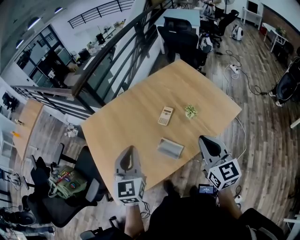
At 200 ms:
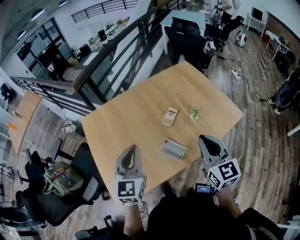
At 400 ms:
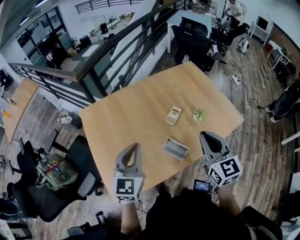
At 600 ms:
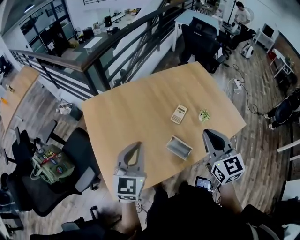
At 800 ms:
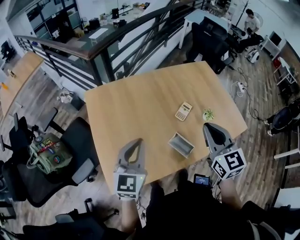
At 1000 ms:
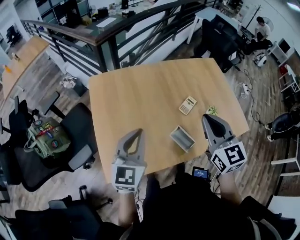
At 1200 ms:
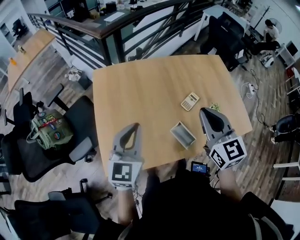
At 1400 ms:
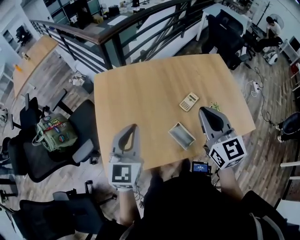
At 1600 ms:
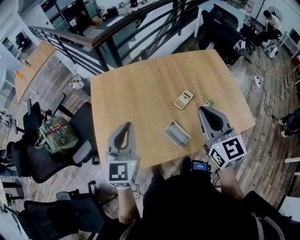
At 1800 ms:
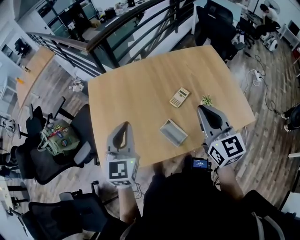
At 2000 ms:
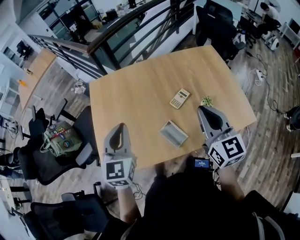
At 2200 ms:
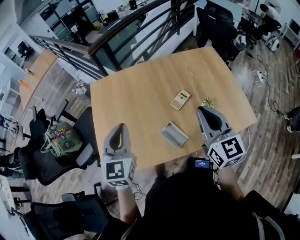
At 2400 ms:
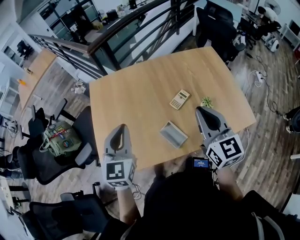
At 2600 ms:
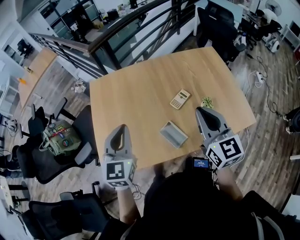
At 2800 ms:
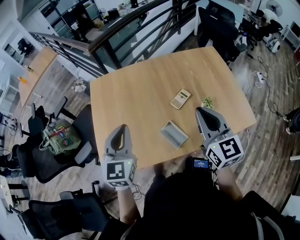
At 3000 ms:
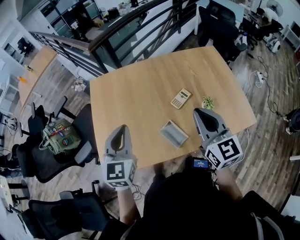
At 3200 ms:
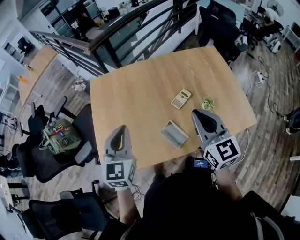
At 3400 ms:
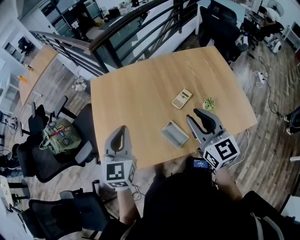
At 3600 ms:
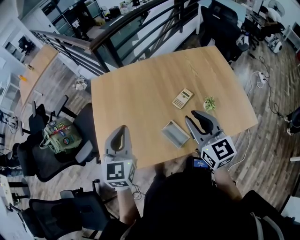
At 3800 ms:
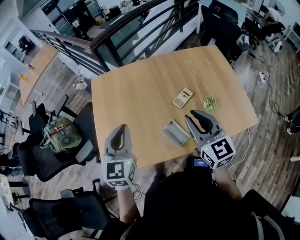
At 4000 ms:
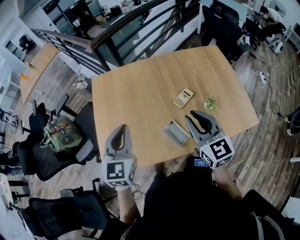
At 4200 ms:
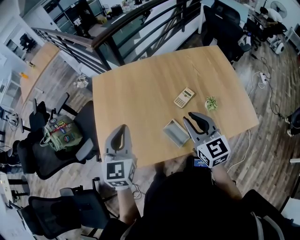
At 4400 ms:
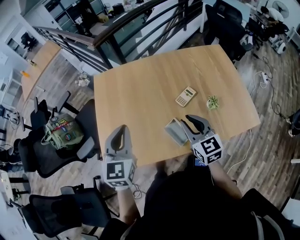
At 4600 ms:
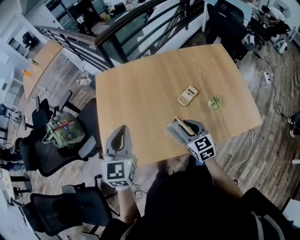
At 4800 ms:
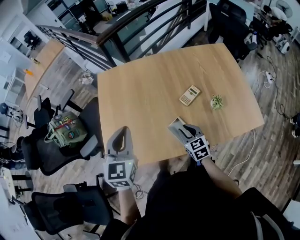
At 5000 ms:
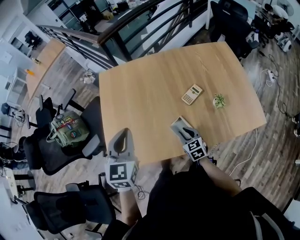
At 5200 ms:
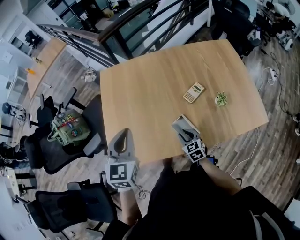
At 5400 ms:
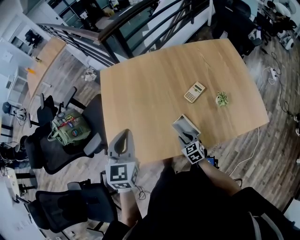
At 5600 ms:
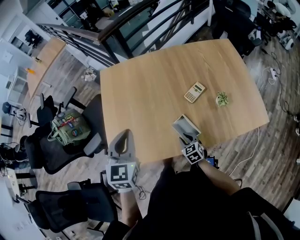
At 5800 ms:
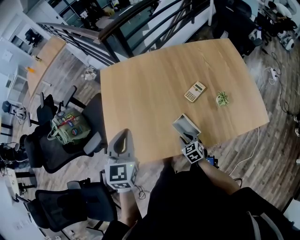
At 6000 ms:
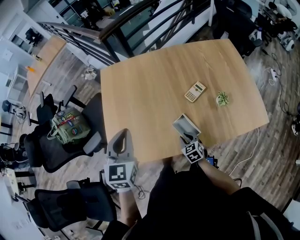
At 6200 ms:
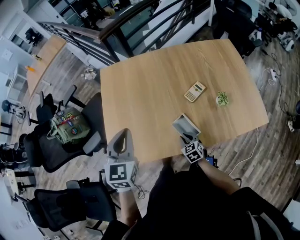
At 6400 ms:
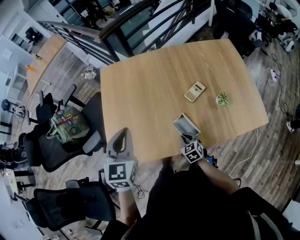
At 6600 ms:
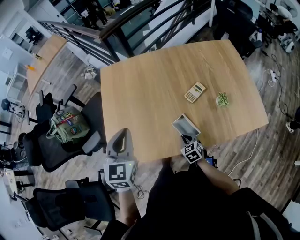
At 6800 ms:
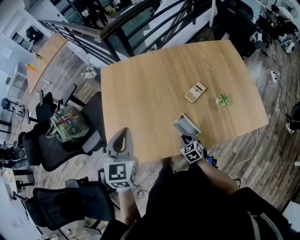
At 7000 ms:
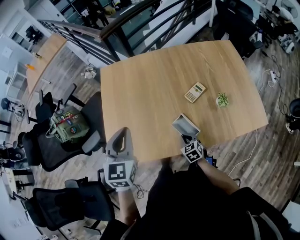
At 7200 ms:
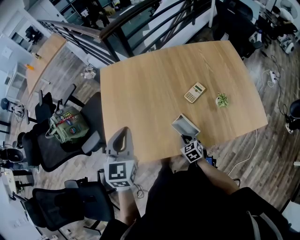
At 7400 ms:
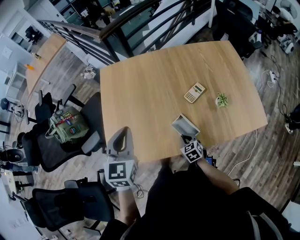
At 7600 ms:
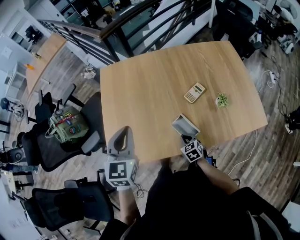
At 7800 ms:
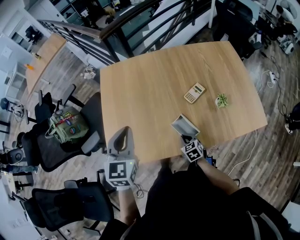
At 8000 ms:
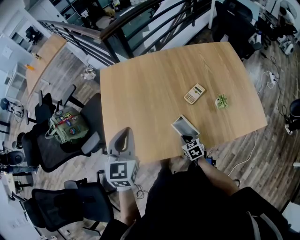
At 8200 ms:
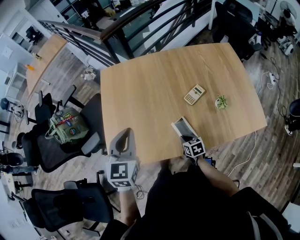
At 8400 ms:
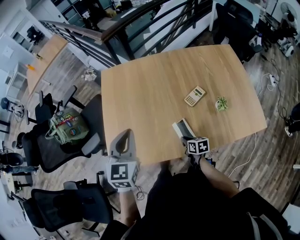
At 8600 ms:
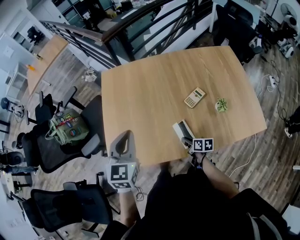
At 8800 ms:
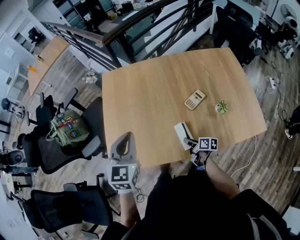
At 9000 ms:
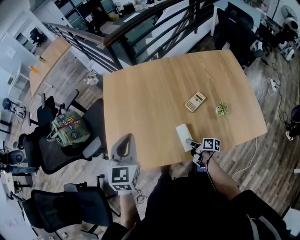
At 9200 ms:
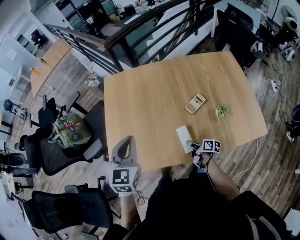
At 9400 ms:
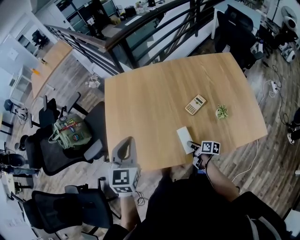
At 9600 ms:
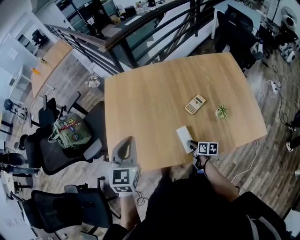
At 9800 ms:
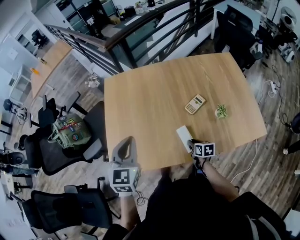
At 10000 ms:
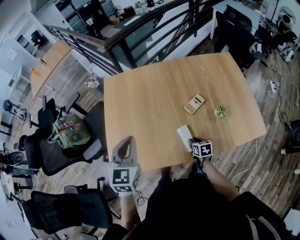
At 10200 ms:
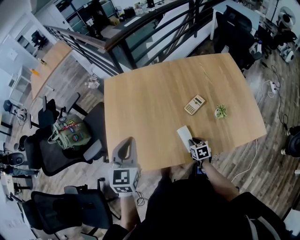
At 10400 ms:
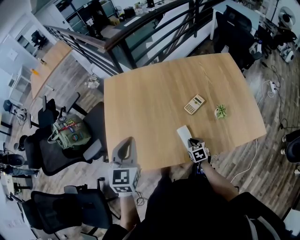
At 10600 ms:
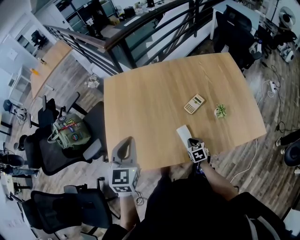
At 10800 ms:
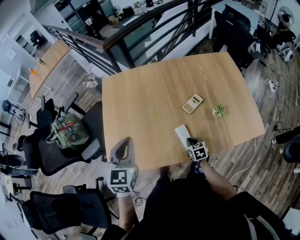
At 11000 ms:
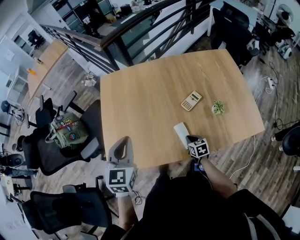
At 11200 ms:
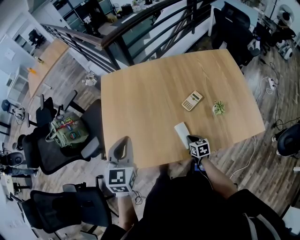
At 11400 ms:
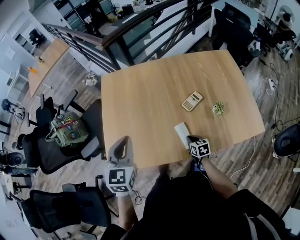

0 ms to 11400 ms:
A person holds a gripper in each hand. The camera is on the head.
0 ms to 1400 ms: The left gripper heads to the left, covering about 10 cm; the right gripper shifts roughly 20 cm to the left and forward, and changes its angle by roughly 20 degrees.
1400 ms to 2800 ms: The right gripper moves to the right, roughly 10 cm; the left gripper is displaced to the right by roughly 5 cm.
2800 ms to 4200 ms: The right gripper travels downward by some 5 cm.
4200 ms to 5600 ms: The right gripper moves downward, roughly 30 cm, and angles its fingers downward, by some 30 degrees.
5600 ms to 7200 ms: The right gripper closes.
7200 ms to 8600 ms: The right gripper rolls clockwise, seen from behind, by approximately 50 degrees.
8600 ms to 10000 ms: The right gripper is displaced to the right by approximately 5 cm, and turns by some 30 degrees.

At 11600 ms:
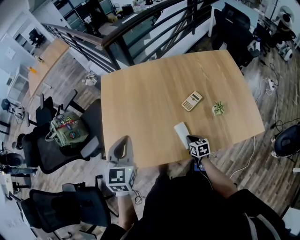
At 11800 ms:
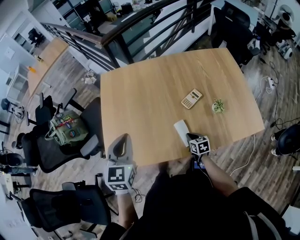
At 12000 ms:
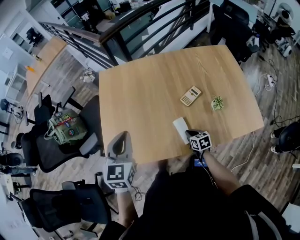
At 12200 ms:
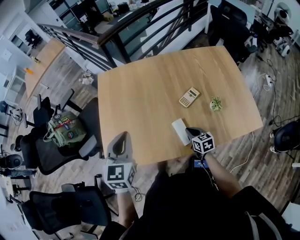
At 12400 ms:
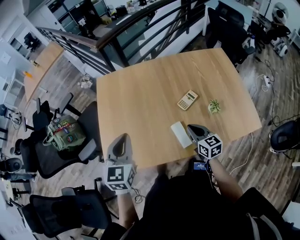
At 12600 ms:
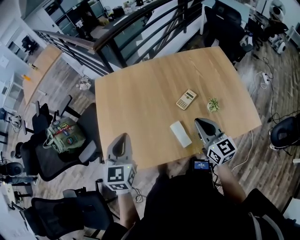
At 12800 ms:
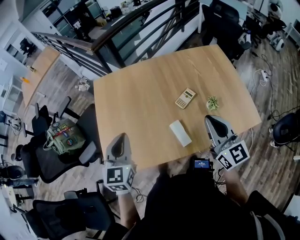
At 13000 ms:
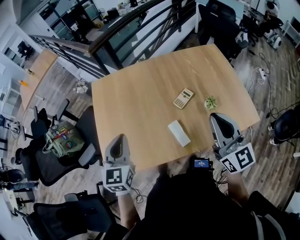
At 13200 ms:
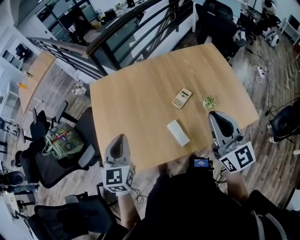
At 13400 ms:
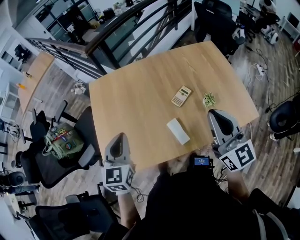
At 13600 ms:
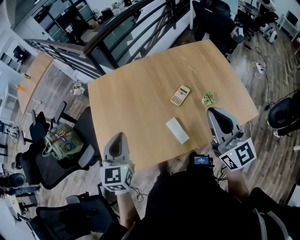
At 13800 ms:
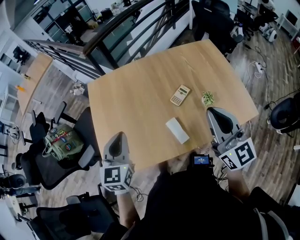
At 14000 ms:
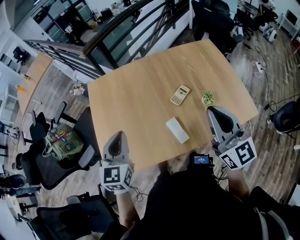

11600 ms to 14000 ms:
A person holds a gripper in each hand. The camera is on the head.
11600 ms to 12800 ms: The right gripper is displaced upward by about 35 cm, and tips its fingers upward by approximately 50 degrees.
12800 ms to 14000 ms: The right gripper is displaced upward by approximately 5 cm.

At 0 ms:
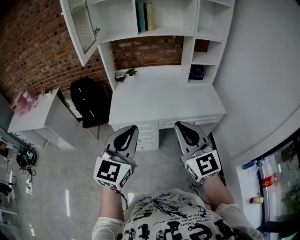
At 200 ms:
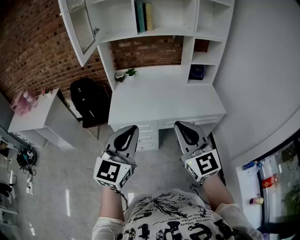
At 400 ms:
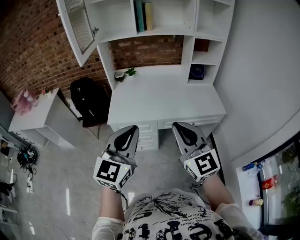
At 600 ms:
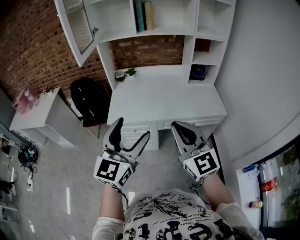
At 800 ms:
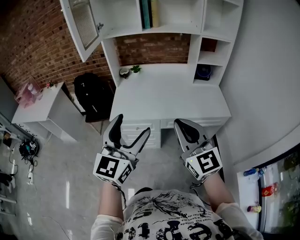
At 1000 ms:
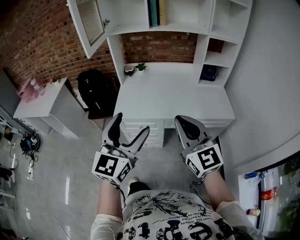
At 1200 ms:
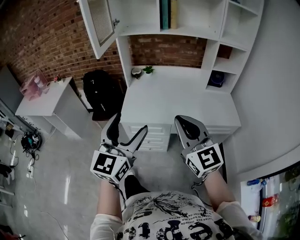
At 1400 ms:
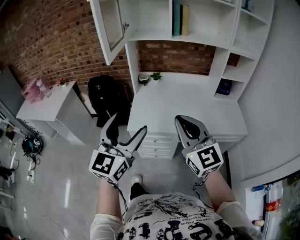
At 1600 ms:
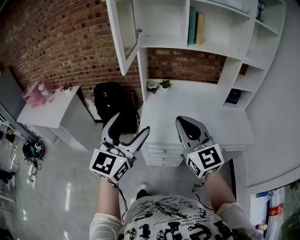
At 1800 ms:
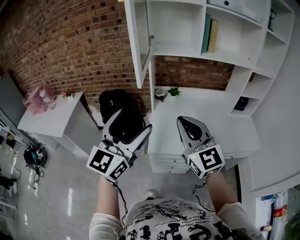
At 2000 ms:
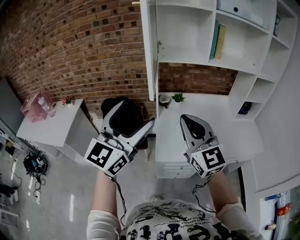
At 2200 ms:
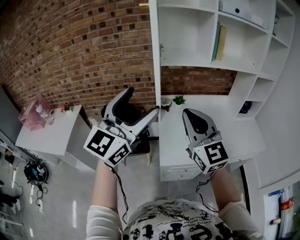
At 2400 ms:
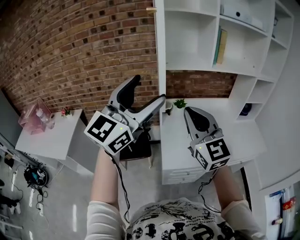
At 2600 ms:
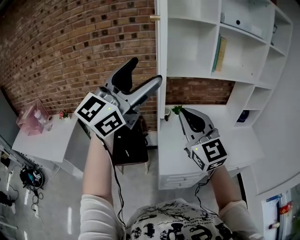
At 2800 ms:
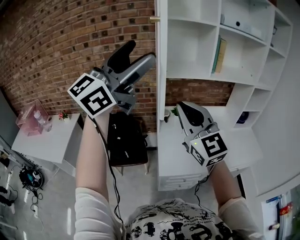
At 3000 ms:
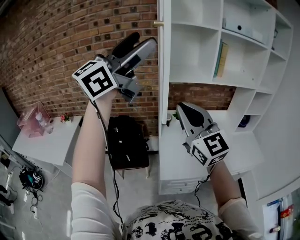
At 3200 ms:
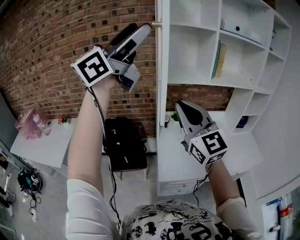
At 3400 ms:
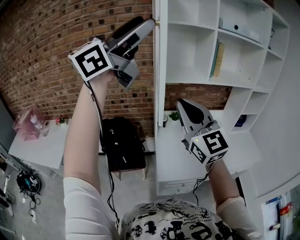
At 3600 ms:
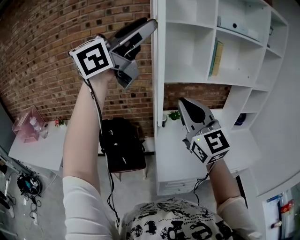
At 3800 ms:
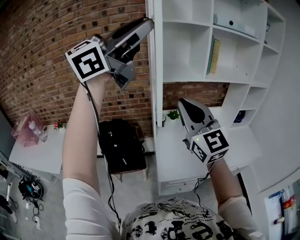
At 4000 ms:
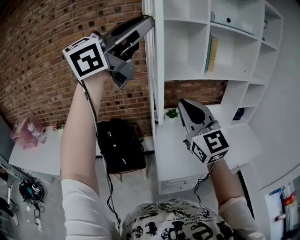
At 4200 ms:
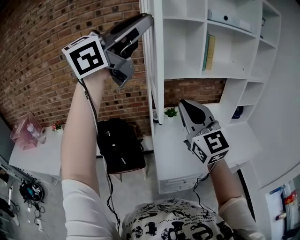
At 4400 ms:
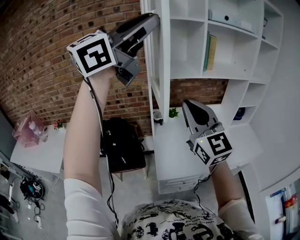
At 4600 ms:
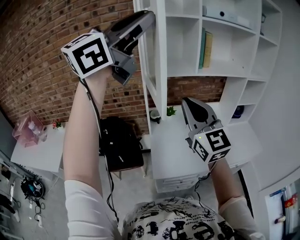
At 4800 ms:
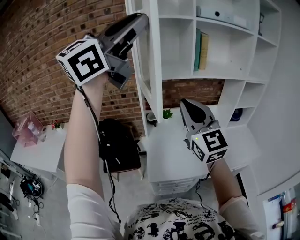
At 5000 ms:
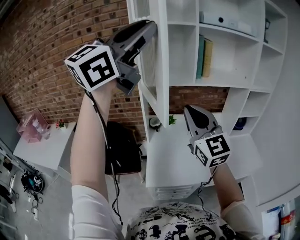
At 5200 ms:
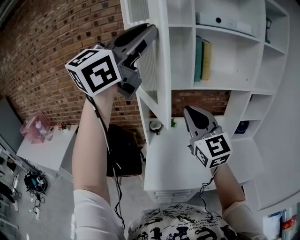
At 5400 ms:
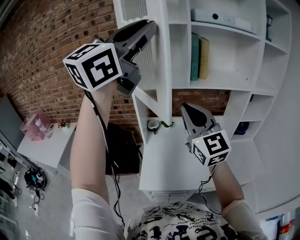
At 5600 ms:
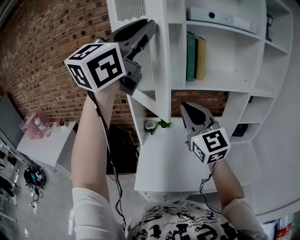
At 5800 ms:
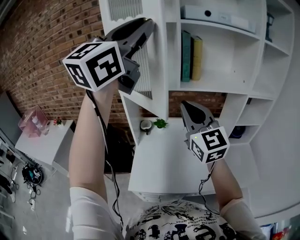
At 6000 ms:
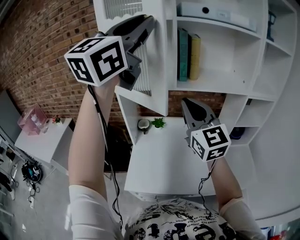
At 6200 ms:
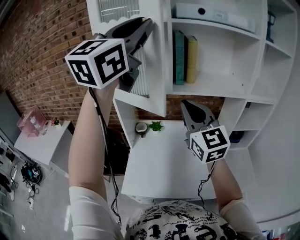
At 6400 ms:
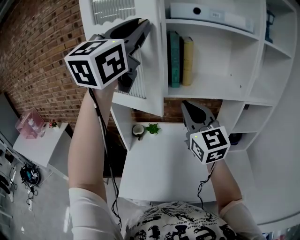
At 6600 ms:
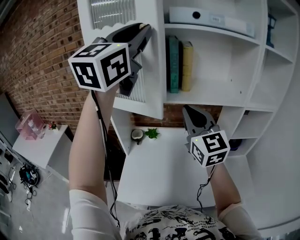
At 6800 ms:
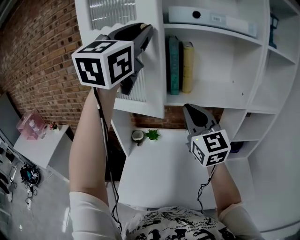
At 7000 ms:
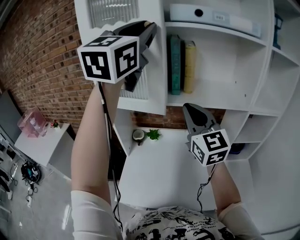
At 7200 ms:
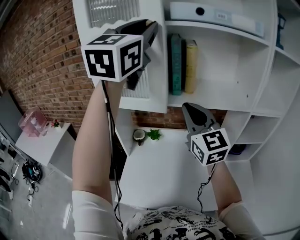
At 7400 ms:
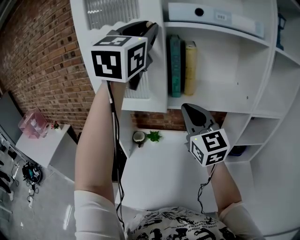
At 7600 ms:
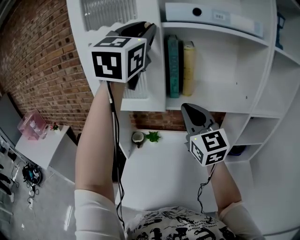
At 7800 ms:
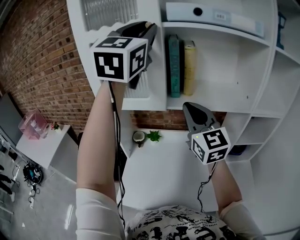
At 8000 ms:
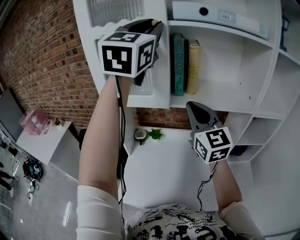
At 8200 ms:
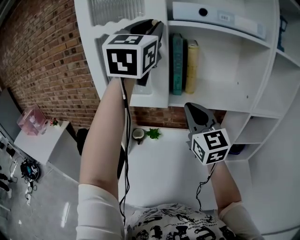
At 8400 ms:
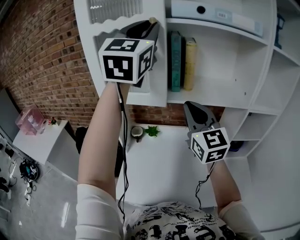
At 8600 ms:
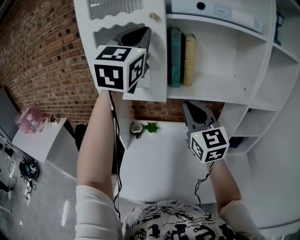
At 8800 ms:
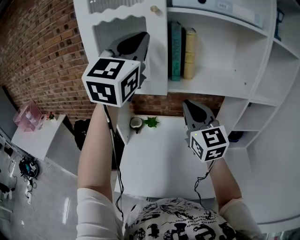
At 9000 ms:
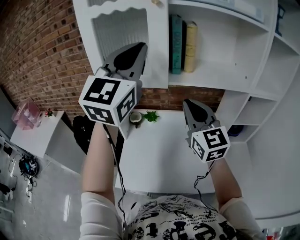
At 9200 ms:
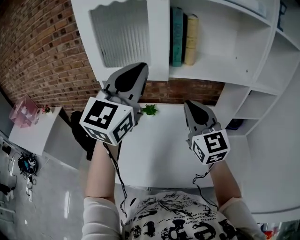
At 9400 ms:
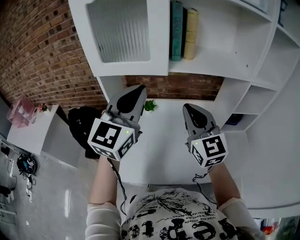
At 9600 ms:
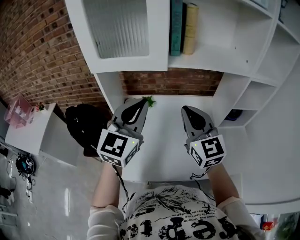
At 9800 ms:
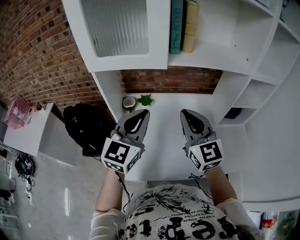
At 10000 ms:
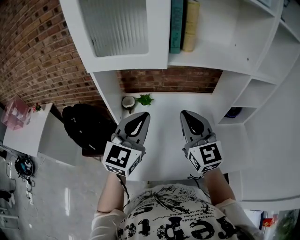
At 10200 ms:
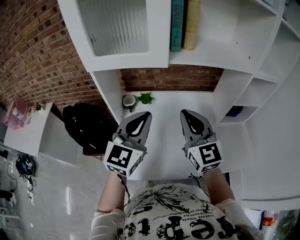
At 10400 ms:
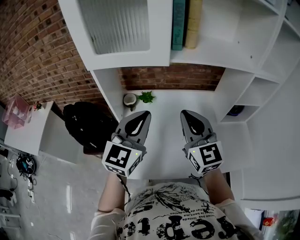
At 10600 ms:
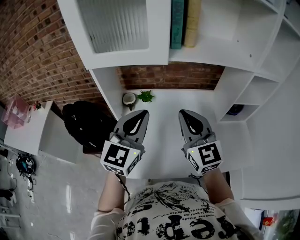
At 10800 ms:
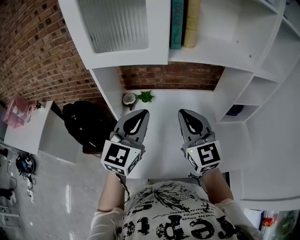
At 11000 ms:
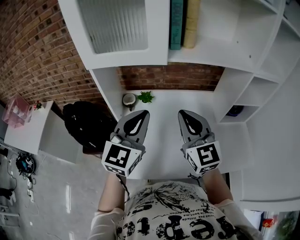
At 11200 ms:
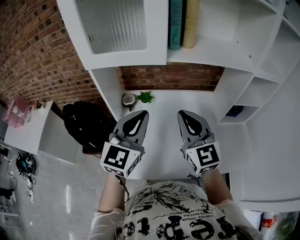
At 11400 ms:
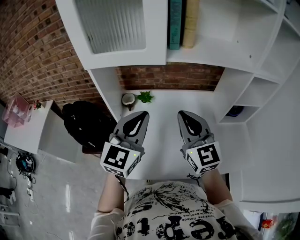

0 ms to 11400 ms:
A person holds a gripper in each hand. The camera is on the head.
0 ms to 1400 ms: The grippers both shift forward and to the left by about 20 cm. The left gripper opens up.
1400 ms to 2800 ms: The right gripper shifts some 40 cm to the left, forward and upward. Meanwhile the left gripper goes roughly 50 cm upward, to the left and forward, and rotates roughly 40 degrees.
2800 ms to 4200 ms: The left gripper moves upward, roughly 5 cm, and closes.
4200 ms to 5600 ms: Both grippers travel together to the right and forward, roughly 25 cm. The left gripper rotates approximately 30 degrees.
5600 ms to 7200 ms: Both grippers move forward and to the right, approximately 20 cm. The left gripper swivels some 20 degrees.
7200 ms to 8600 ms: There are only small adjustments of the grippers.
8600 ms to 10000 ms: The right gripper goes roughly 15 cm downward; the left gripper goes roughly 35 cm downward, and changes its angle by about 30 degrees.
10000 ms to 11400 ms: Neither gripper changes place.
